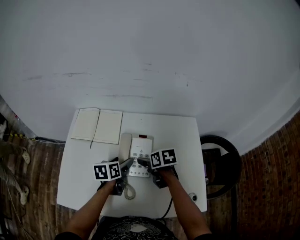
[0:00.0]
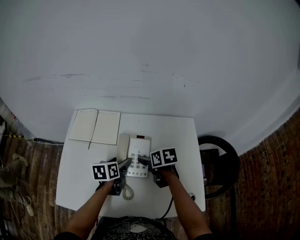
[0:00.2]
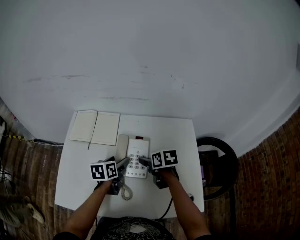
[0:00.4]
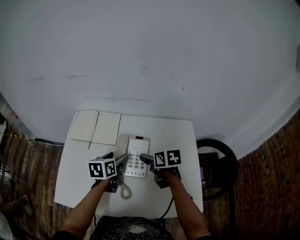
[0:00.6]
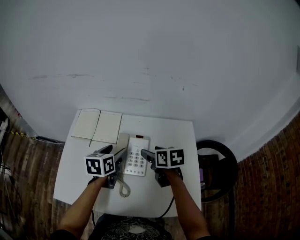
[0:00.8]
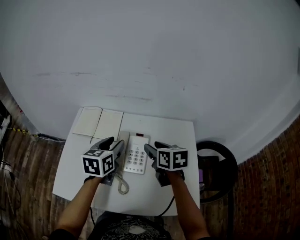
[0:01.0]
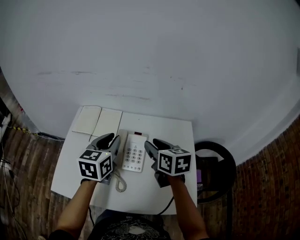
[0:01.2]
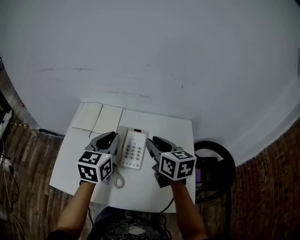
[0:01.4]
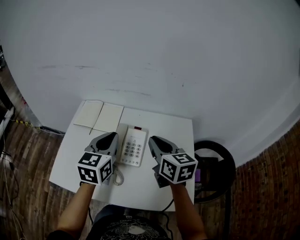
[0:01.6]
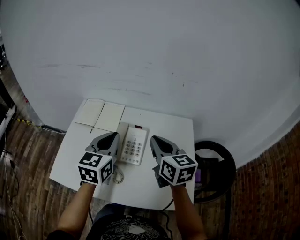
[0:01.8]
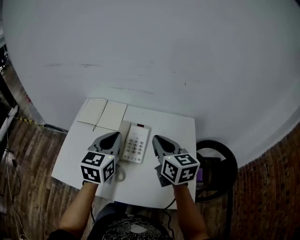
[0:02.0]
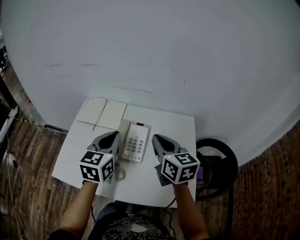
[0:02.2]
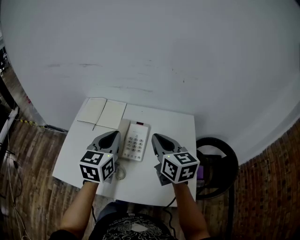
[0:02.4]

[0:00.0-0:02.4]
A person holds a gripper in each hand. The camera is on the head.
0:00.0 to 0:01.2: The grippers both shift upward by about 20 cm. The right gripper rotates approximately 30 degrees, and closes its fingers. The left gripper changes its angle by approximately 30 degrees, and closes.
0:01.2 to 0:02.4: Both grippers move backward, roughly 5 cm. The right gripper closes.

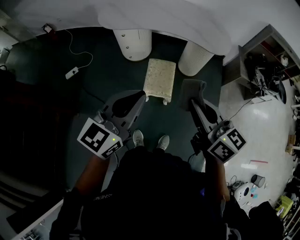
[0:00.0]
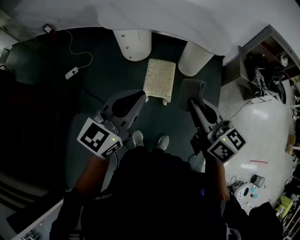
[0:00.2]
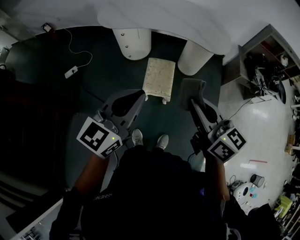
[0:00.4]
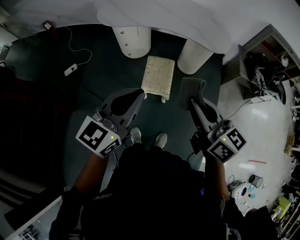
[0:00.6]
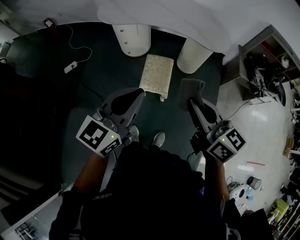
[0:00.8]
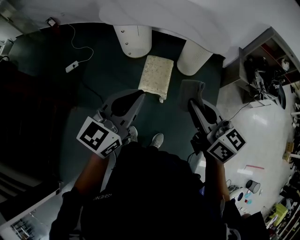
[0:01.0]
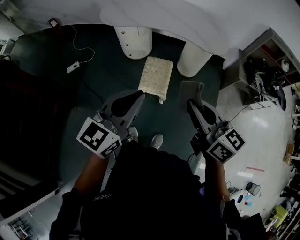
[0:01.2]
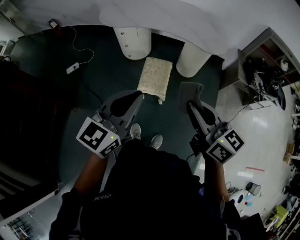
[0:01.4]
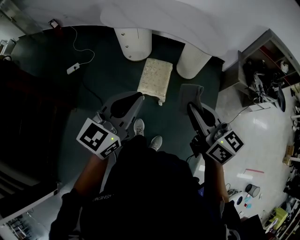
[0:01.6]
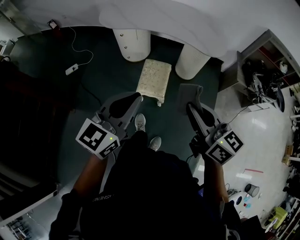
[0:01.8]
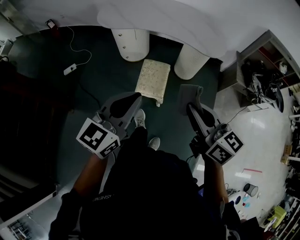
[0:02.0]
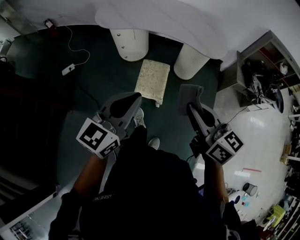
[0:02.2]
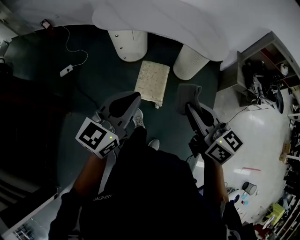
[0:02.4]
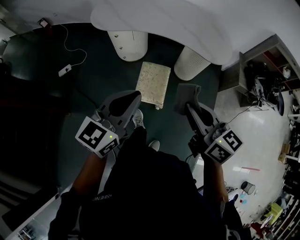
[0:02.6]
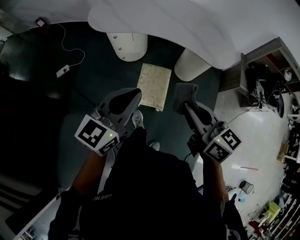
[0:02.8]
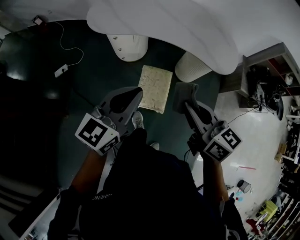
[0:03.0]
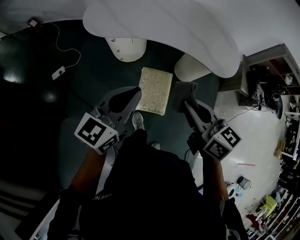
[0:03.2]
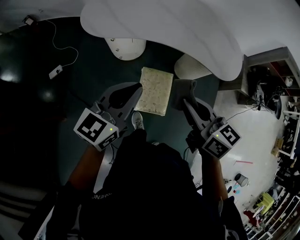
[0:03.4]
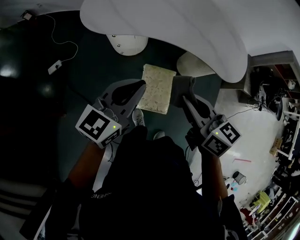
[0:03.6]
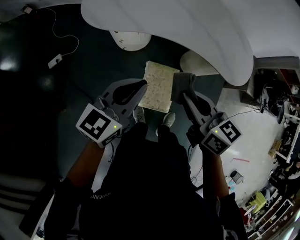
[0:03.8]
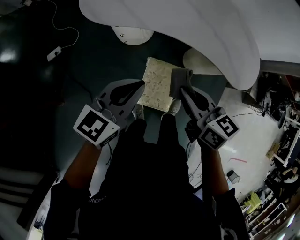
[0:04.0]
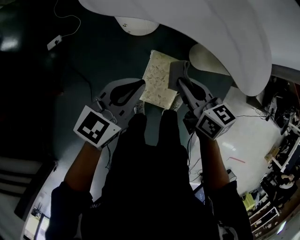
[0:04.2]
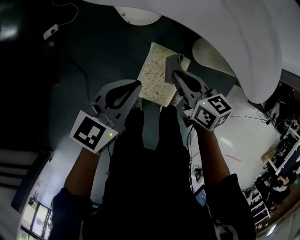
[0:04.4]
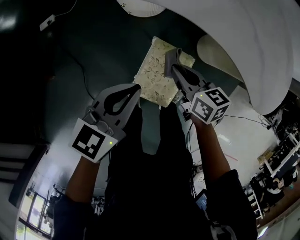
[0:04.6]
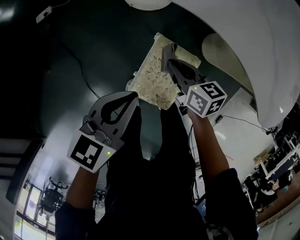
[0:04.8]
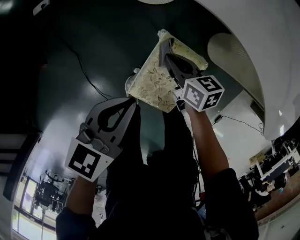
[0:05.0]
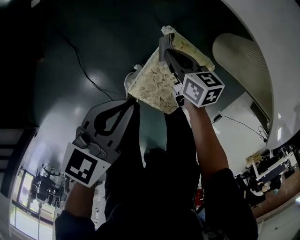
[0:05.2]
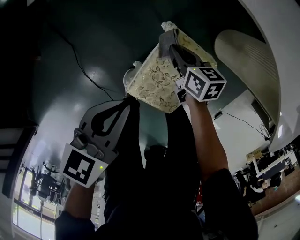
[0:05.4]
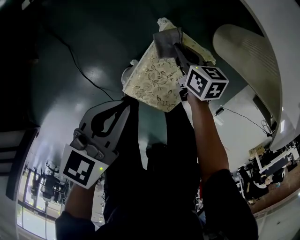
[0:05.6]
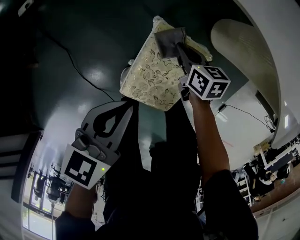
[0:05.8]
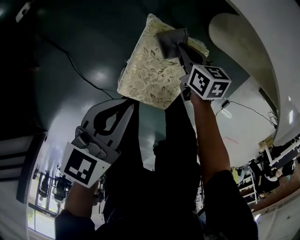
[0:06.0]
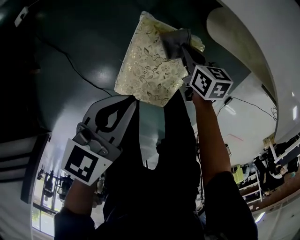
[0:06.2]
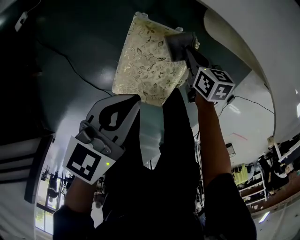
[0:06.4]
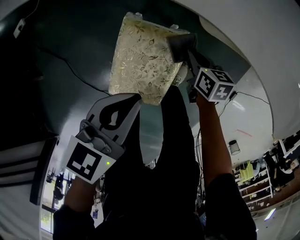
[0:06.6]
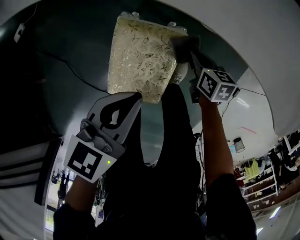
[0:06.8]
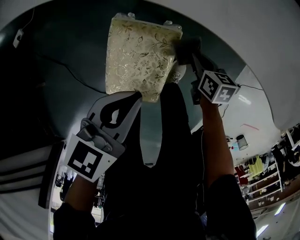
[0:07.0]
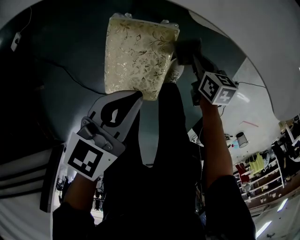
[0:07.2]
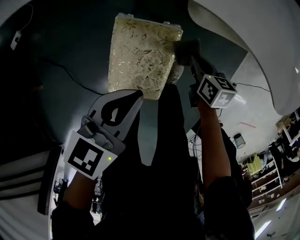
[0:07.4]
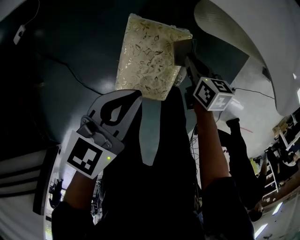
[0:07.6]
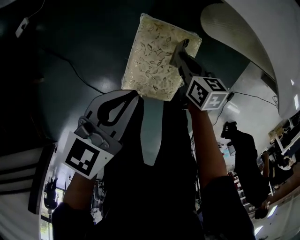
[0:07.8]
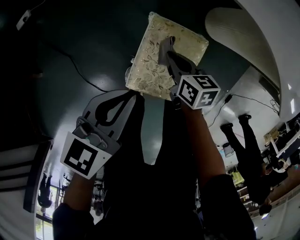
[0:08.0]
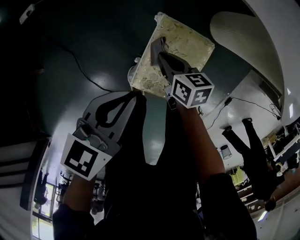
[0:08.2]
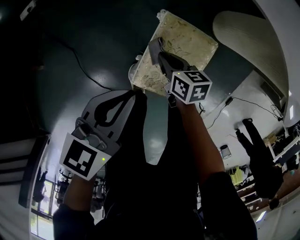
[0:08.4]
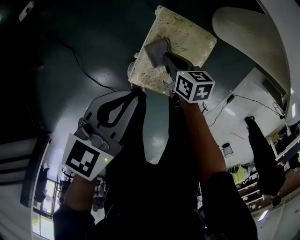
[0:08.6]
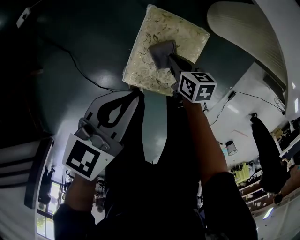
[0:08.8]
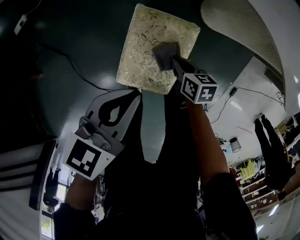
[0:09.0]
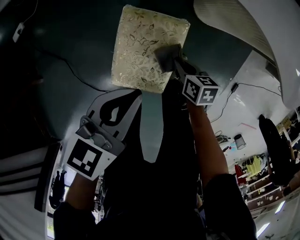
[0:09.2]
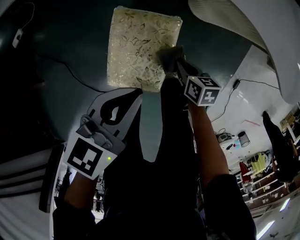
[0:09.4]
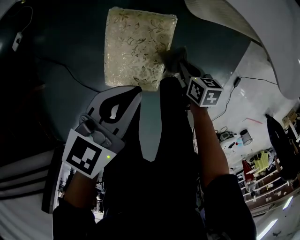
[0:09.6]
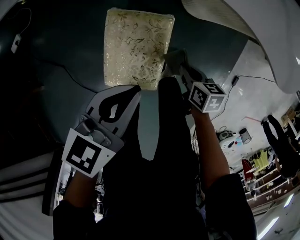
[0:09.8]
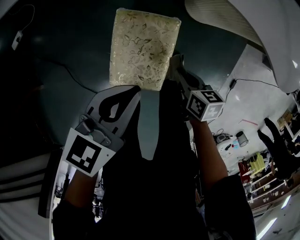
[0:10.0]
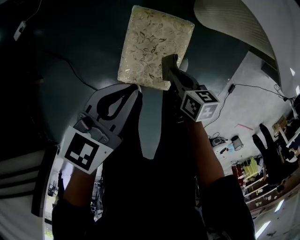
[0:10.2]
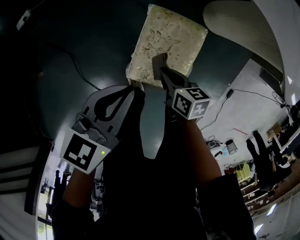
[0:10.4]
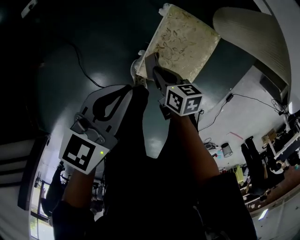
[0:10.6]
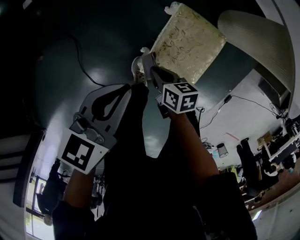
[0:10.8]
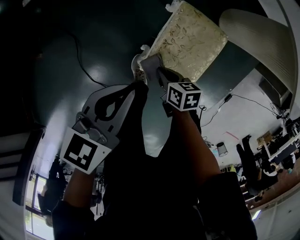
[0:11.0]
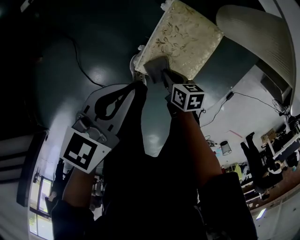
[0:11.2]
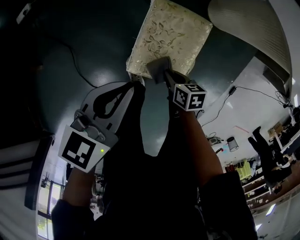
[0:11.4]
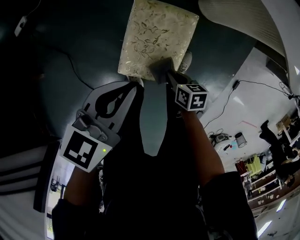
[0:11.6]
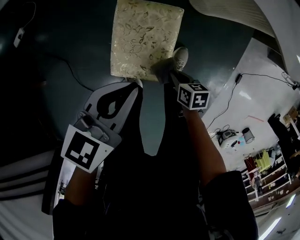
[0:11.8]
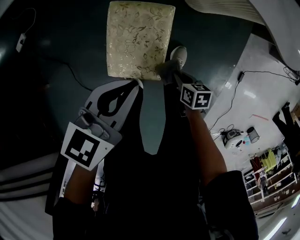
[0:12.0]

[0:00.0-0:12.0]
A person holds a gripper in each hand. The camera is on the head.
0:00.0 to 0:01.6: Both grippers travel together to the right, some 5 cm.
0:01.6 to 0:03.0: Both grippers travel together forward, some 25 cm.
0:03.0 to 0:04.4: The grippers both shift downward and forward by approximately 35 cm. The right gripper turns by some 20 degrees.
0:04.4 to 0:06.0: The right gripper shifts about 35 cm downward, and rotates approximately 20 degrees, while the left gripper shifts about 25 cm downward, and rotates some 20 degrees.
0:06.0 to 0:07.6: The right gripper is displaced to the right, upward and backward by some 10 cm. Meanwhile the left gripper shifts about 5 cm to the right.
0:07.6 to 0:09.0: The left gripper moves roughly 10 cm to the left and comes back; the right gripper heads backward, covering about 5 cm, and moves roughly 20 cm to the left and comes back.
0:09.0 to 0:10.4: The left gripper shifts roughly 10 cm to the left, while the right gripper goes about 15 cm to the left, upward and backward.
0:10.4 to 0:12.0: The left gripper is displaced to the right by approximately 15 cm. The right gripper goes some 20 cm to the right, backward and downward.

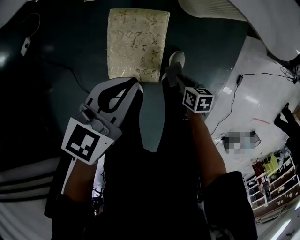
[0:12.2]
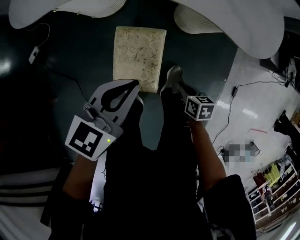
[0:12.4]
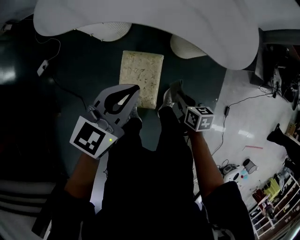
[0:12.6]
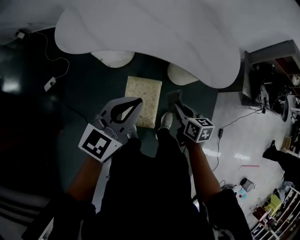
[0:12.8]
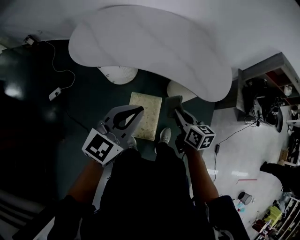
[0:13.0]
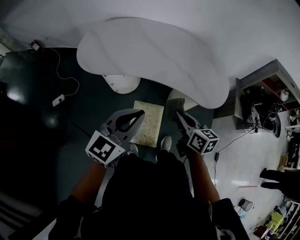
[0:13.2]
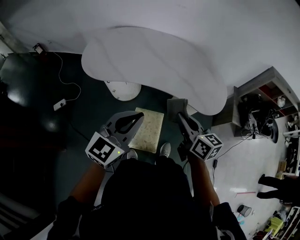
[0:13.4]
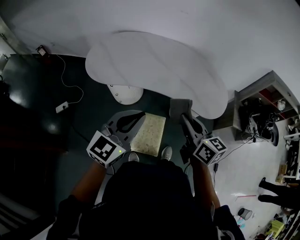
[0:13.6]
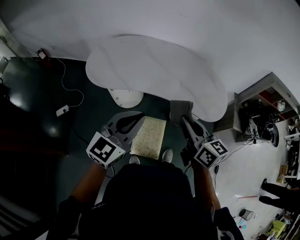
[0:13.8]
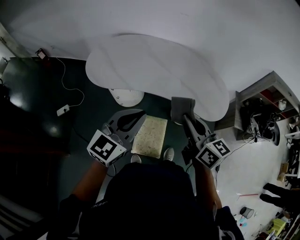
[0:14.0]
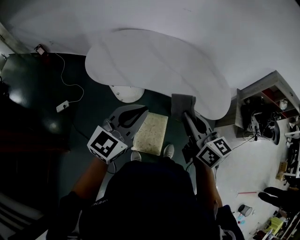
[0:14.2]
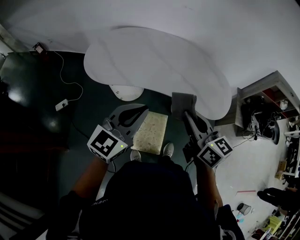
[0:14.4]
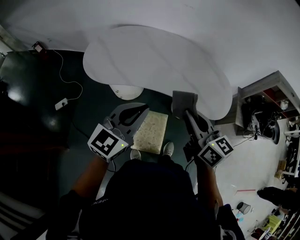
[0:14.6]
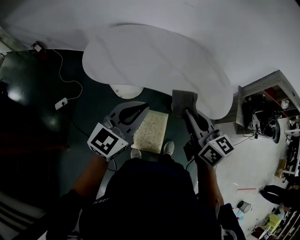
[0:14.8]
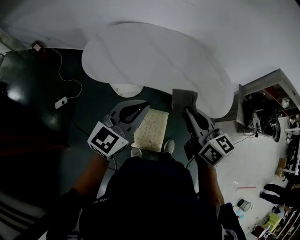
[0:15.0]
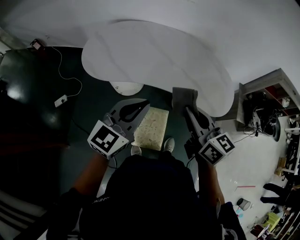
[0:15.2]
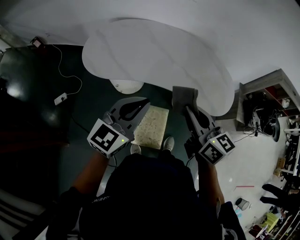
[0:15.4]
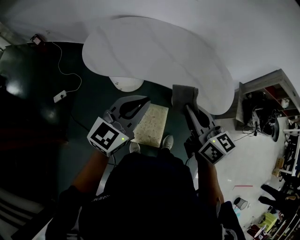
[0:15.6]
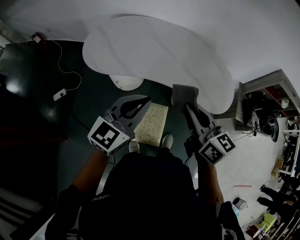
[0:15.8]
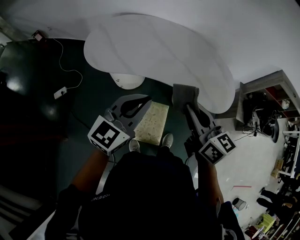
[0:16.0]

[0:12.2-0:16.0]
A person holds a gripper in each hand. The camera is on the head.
0:12.2 to 0:13.4: The two grippers go about 50 cm upward. The right gripper points its fingers roughly 40 degrees further upward; the left gripper rotates some 40 degrees.
0:13.4 to 0:14.8: The left gripper moves forward, some 10 cm. Meanwhile the right gripper goes about 10 cm upward.
0:14.8 to 0:16.0: The grippers stay close to where they were, moving slightly.

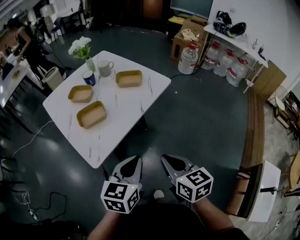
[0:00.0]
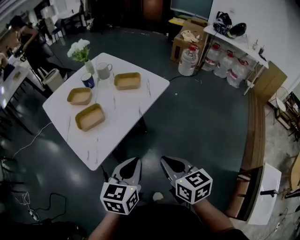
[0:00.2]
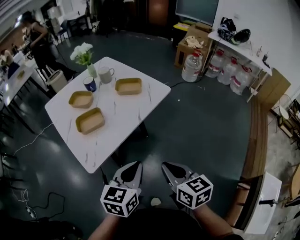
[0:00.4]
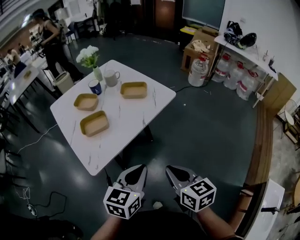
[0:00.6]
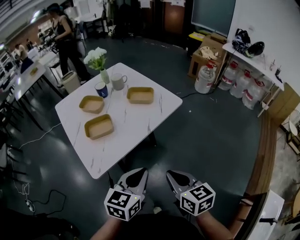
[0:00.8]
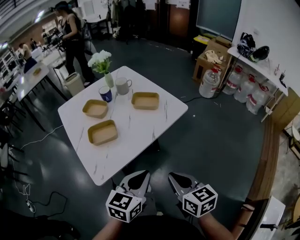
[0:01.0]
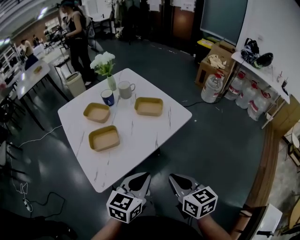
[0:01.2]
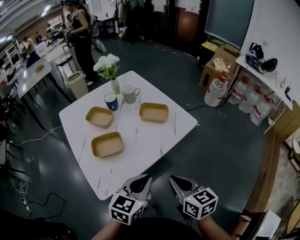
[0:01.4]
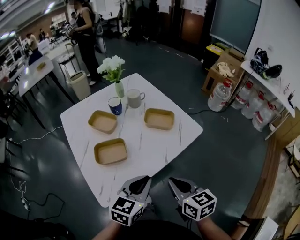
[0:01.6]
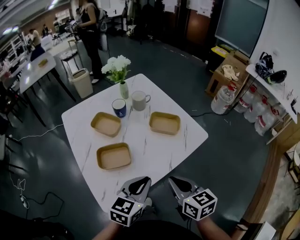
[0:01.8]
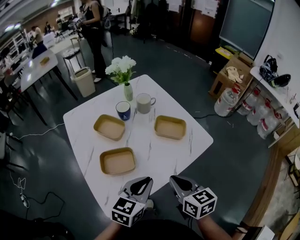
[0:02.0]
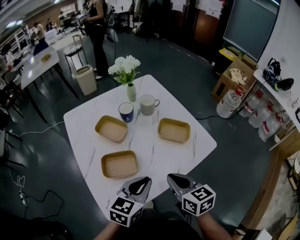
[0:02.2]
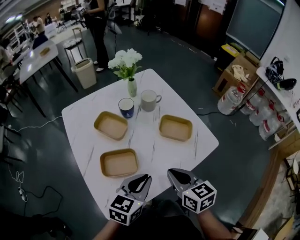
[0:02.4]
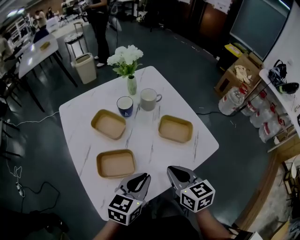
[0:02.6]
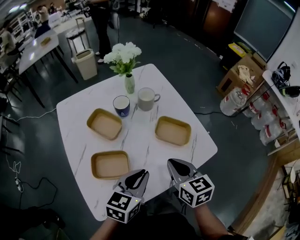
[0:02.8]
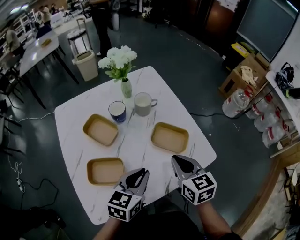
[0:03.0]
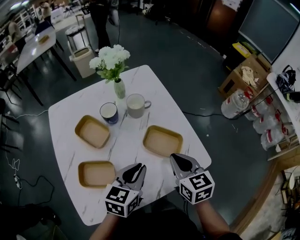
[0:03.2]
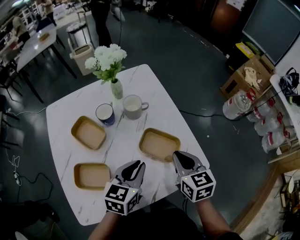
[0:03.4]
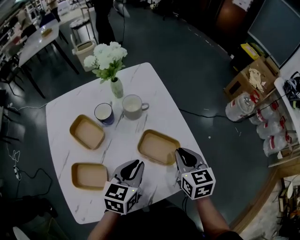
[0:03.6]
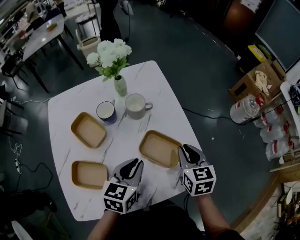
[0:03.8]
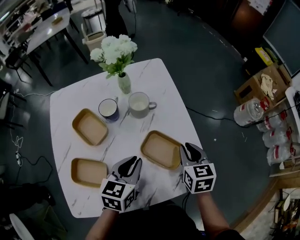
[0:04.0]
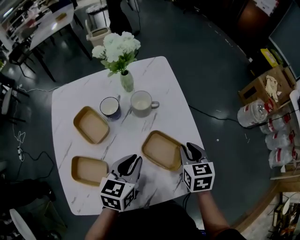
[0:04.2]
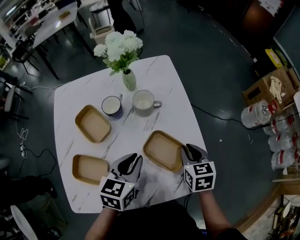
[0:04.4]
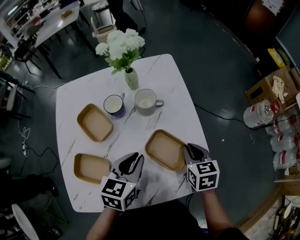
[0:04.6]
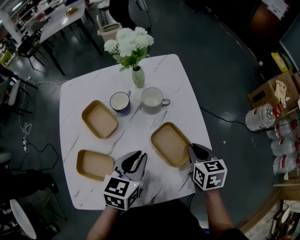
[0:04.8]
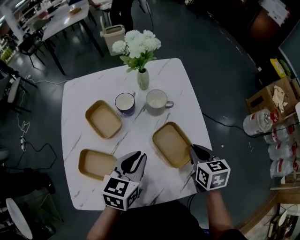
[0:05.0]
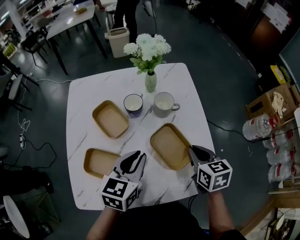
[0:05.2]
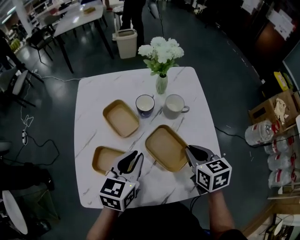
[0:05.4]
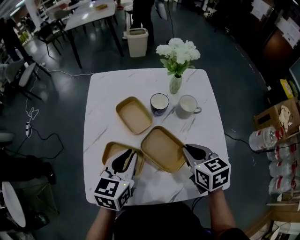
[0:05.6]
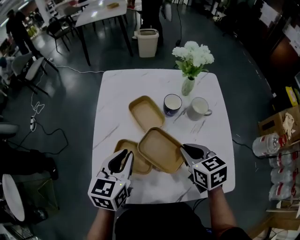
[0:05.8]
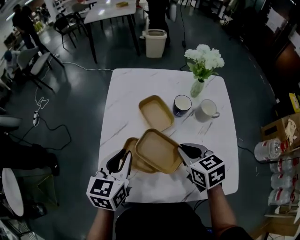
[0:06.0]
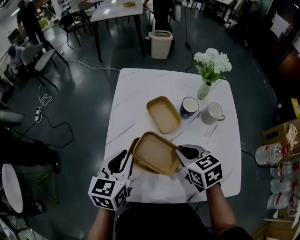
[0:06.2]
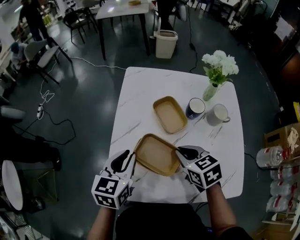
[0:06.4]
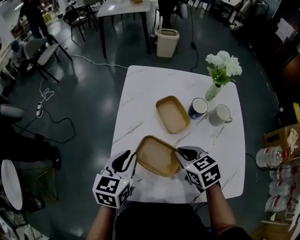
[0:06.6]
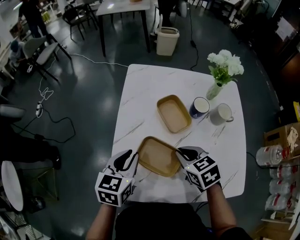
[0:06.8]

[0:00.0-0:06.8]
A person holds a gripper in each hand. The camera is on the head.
0:00.0 to 0:01.4: Both grippers move forward, approximately 15 cm.
0:01.4 to 0:02.8: The grippers both shift forward by approximately 20 cm.
0:02.8 to 0:04.0: The right gripper travels forward and to the right by roughly 20 cm; the left gripper heads forward, covering roughly 15 cm.
0:04.0 to 0:05.4: The two grippers go roughly 10 cm to the left. The right gripper turns by about 20 degrees.
0:05.4 to 0:06.8: The two grippers go approximately 25 cm to the left. The right gripper changes its angle by roughly 30 degrees.
